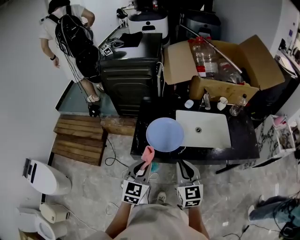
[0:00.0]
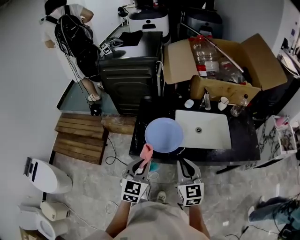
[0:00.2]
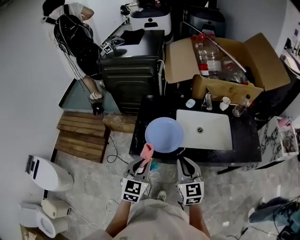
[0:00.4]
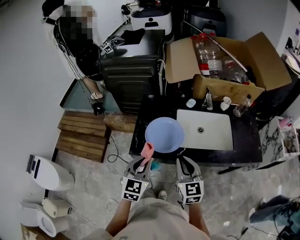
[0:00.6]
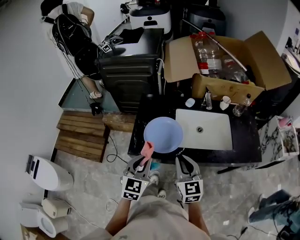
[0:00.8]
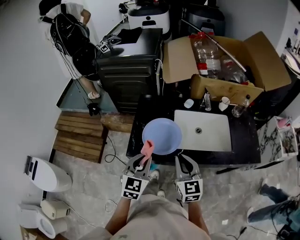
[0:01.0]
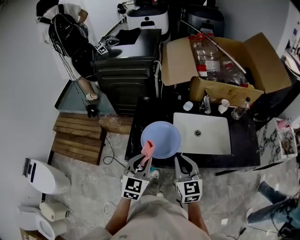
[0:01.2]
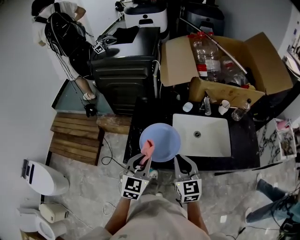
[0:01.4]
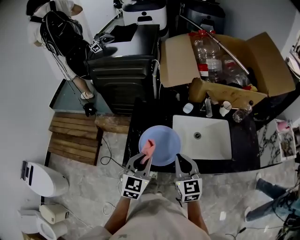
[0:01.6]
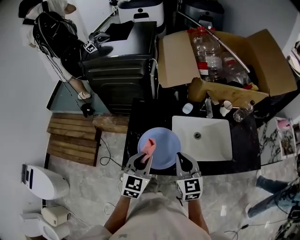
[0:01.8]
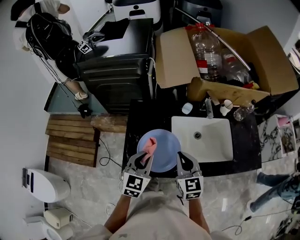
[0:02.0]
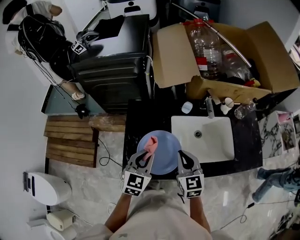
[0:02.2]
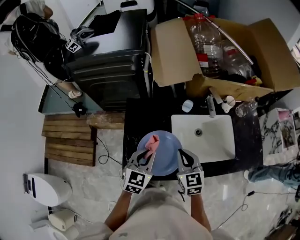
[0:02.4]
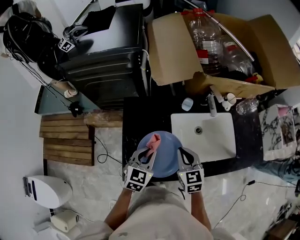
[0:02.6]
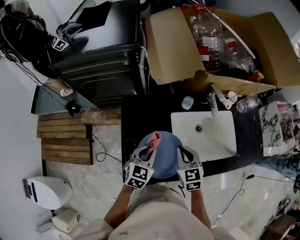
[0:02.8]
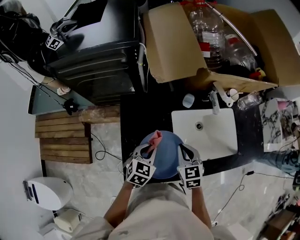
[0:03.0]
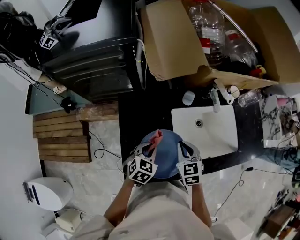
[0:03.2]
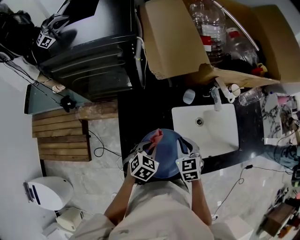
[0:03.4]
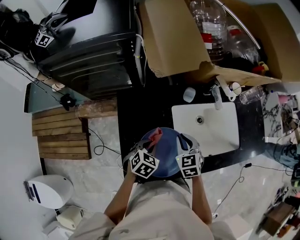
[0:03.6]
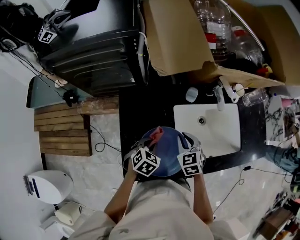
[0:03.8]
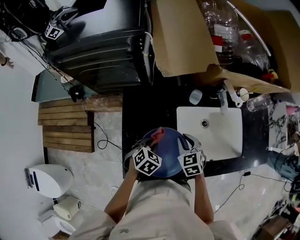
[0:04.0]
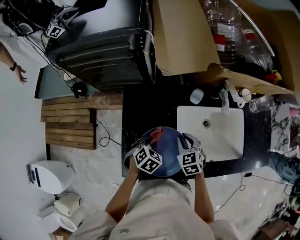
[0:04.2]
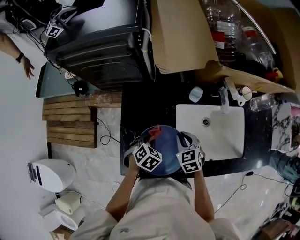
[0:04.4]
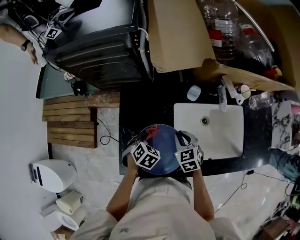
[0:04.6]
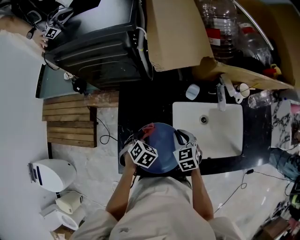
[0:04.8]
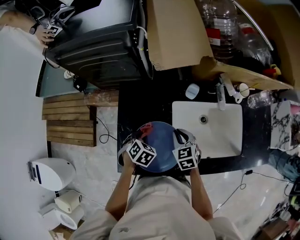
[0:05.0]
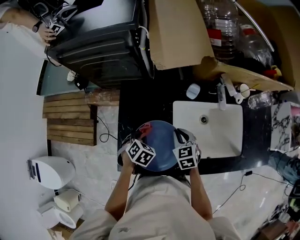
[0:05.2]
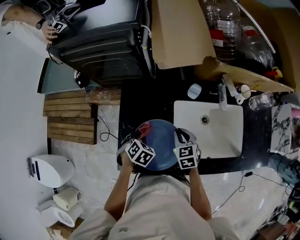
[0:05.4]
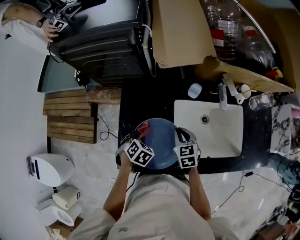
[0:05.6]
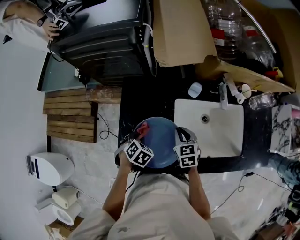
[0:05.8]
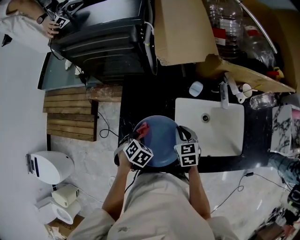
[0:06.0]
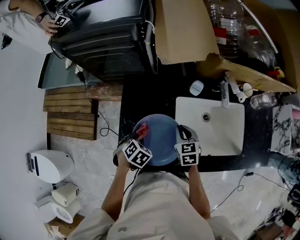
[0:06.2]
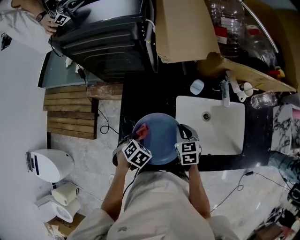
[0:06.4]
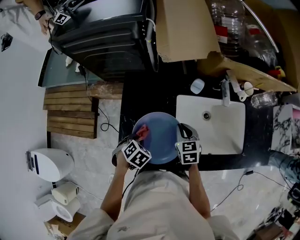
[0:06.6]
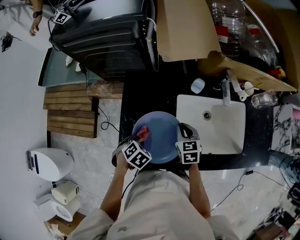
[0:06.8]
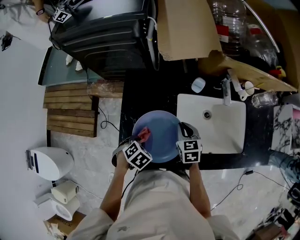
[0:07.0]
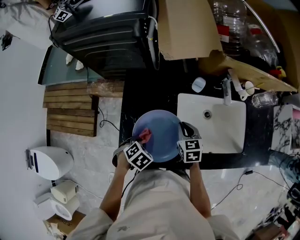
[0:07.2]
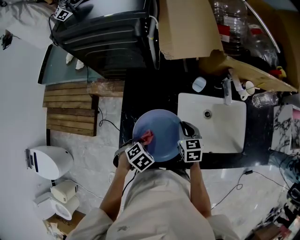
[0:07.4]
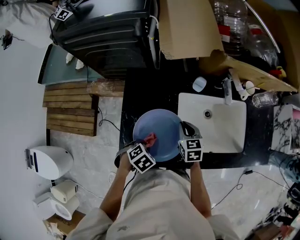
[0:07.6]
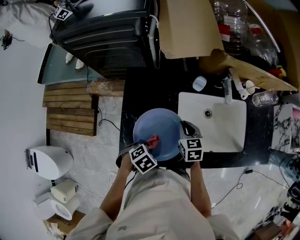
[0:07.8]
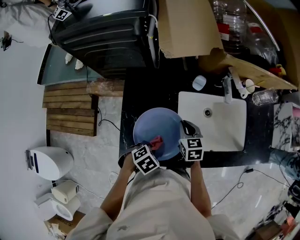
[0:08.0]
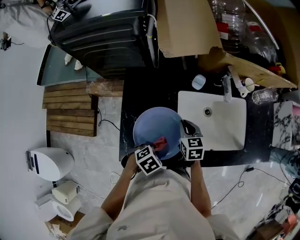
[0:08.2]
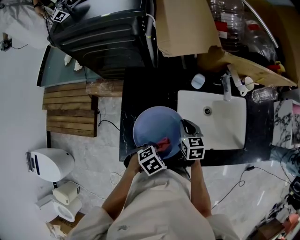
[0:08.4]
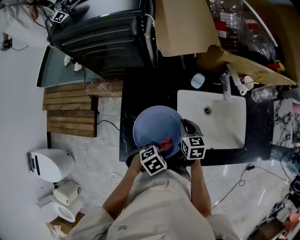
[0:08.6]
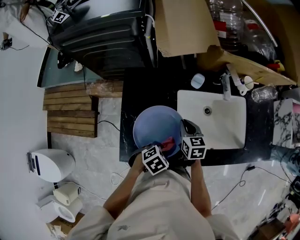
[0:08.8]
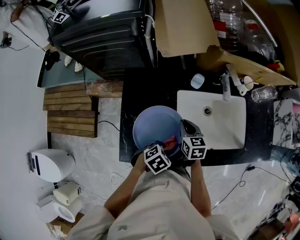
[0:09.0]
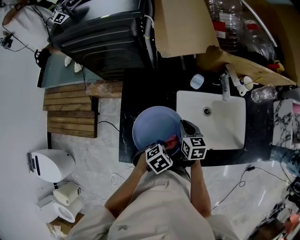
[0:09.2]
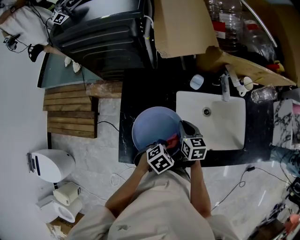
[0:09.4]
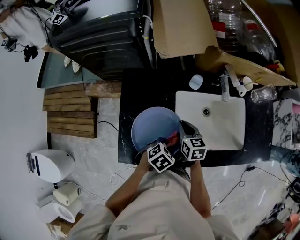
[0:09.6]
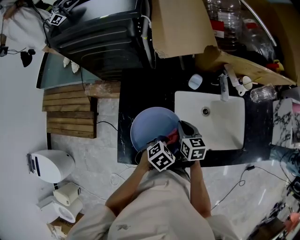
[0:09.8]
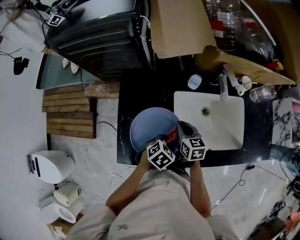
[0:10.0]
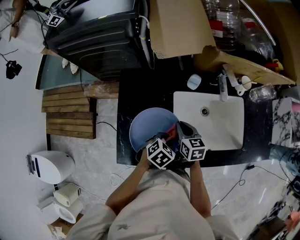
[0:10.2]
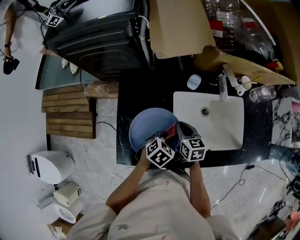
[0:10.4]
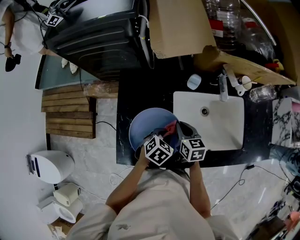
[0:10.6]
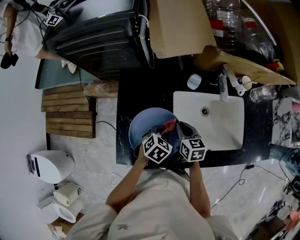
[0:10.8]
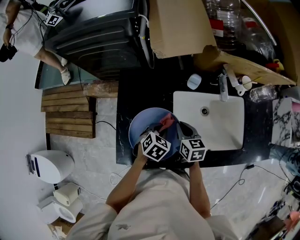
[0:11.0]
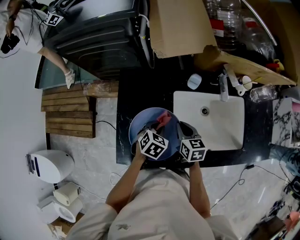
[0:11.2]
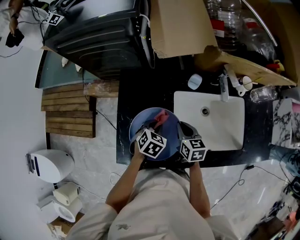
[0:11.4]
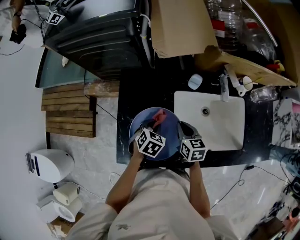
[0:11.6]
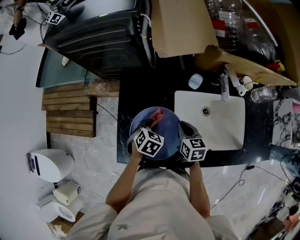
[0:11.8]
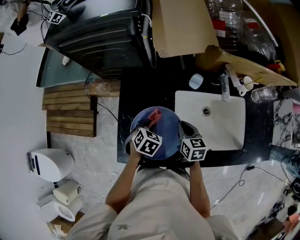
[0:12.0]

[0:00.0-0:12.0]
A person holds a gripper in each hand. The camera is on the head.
0:00.0 to 0:01.6: Both grippers move forward, some 15 cm.
0:01.6 to 0:03.0: The two grippers go roughly 20 cm forward and downward. The right gripper changes its angle by approximately 20 degrees. Meanwhile the left gripper changes its angle by approximately 30 degrees.
0:03.0 to 0:04.4: The grippers both shift downward by about 10 cm. The left gripper rotates about 30 degrees.
0:04.4 to 0:06.0: The left gripper moves to the left, approximately 5 cm.
0:06.0 to 0:07.6: The left gripper ends up approximately 10 cm from where it was.
0:07.6 to 0:09.0: The left gripper ends up about 10 cm from where it was.
0:09.0 to 0:10.4: The left gripper shifts approximately 10 cm forward.
0:10.4 to 0:12.0: The left gripper travels to the left and forward by approximately 10 cm.

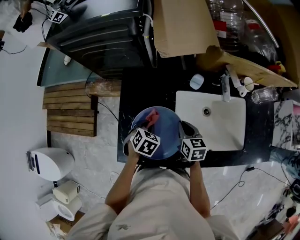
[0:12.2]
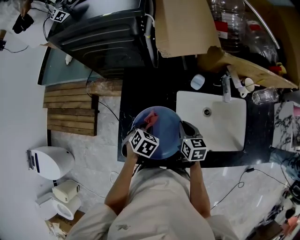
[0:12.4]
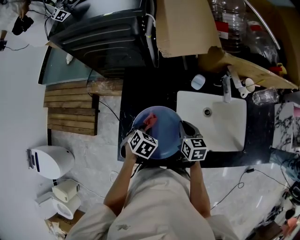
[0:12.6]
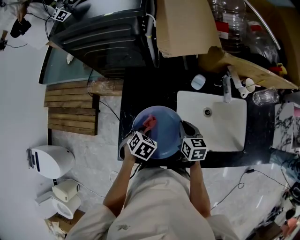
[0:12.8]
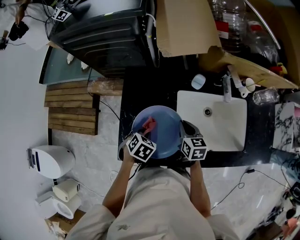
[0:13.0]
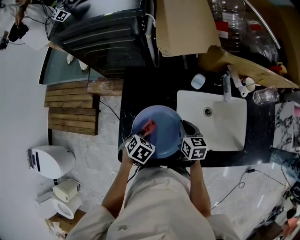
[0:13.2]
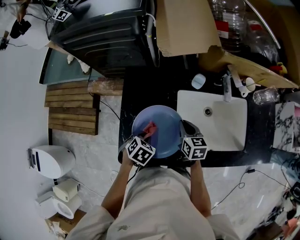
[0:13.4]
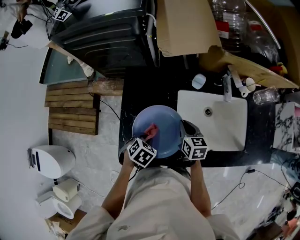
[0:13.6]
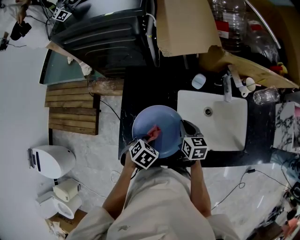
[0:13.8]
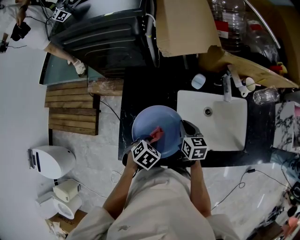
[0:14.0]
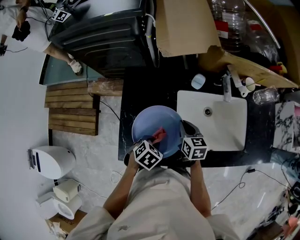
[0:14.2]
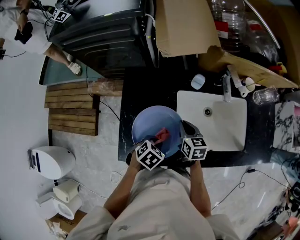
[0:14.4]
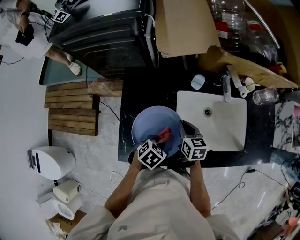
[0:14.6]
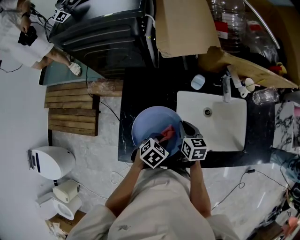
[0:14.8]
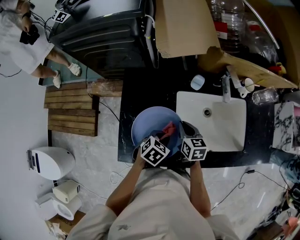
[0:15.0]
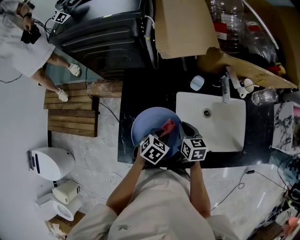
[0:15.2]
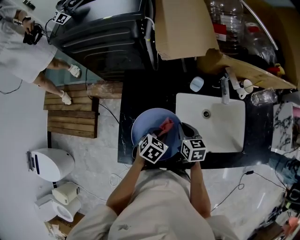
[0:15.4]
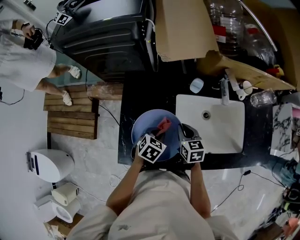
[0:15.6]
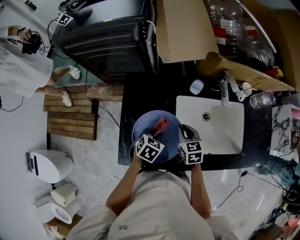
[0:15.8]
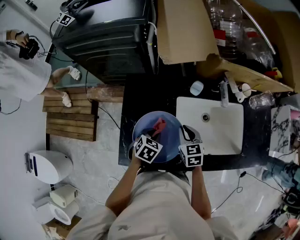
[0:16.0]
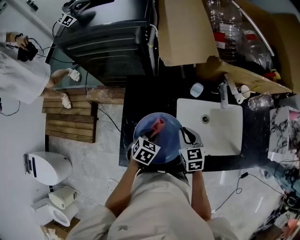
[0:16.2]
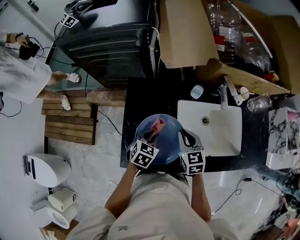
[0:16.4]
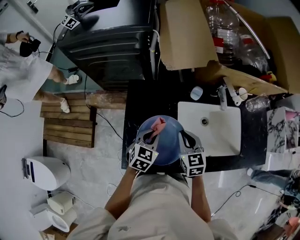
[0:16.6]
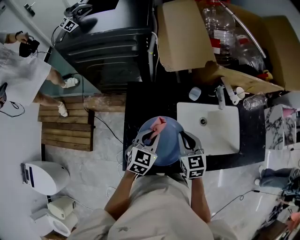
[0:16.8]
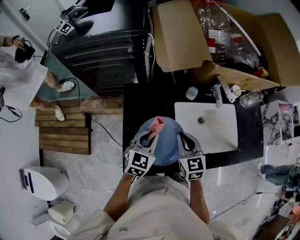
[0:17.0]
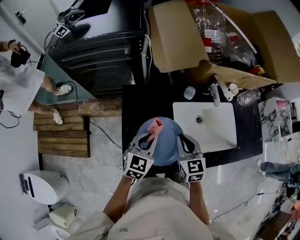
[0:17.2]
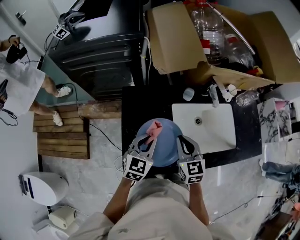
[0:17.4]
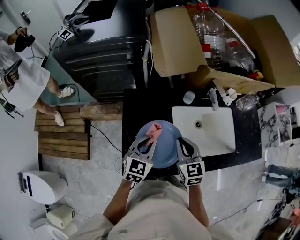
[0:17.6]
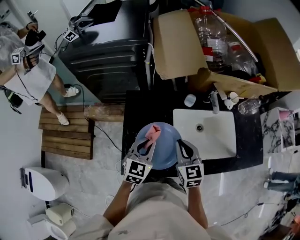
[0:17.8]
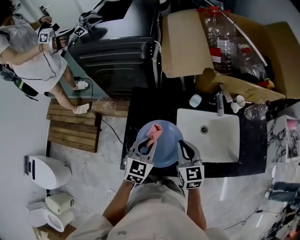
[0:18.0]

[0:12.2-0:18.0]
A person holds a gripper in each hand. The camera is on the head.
0:12.2 to 0:13.6: The left gripper is displaced backward by some 5 cm.
0:13.6 to 0:15.0: The left gripper moves to the right, approximately 10 cm.
0:15.0 to 0:16.6: The right gripper goes approximately 10 cm upward, and swivels roughly 20 degrees. Meanwhile the left gripper goes approximately 10 cm to the left and upward, and swivels roughly 20 degrees.
0:16.6 to 0:18.0: Both grippers travel together upward, roughly 5 cm.

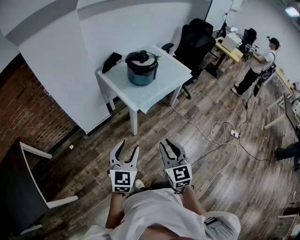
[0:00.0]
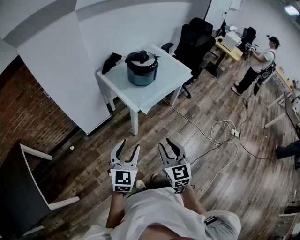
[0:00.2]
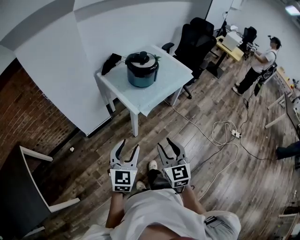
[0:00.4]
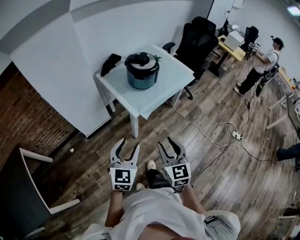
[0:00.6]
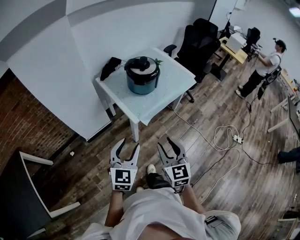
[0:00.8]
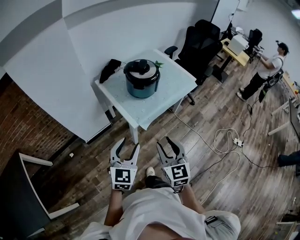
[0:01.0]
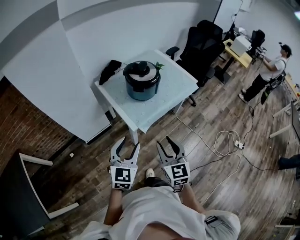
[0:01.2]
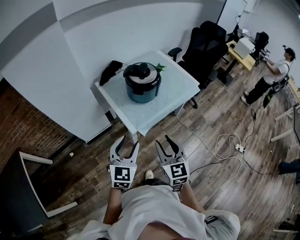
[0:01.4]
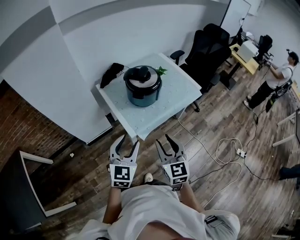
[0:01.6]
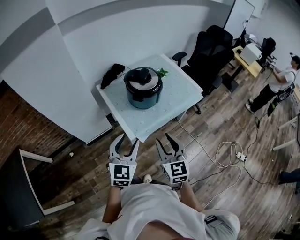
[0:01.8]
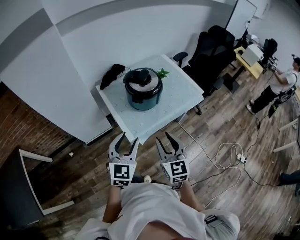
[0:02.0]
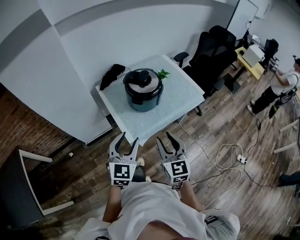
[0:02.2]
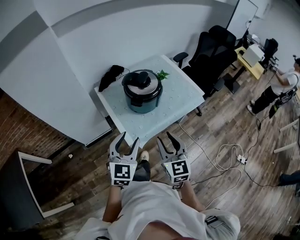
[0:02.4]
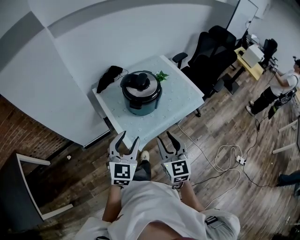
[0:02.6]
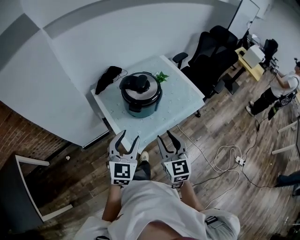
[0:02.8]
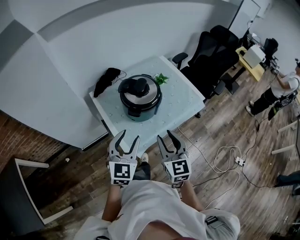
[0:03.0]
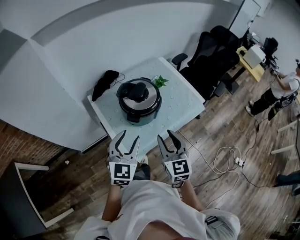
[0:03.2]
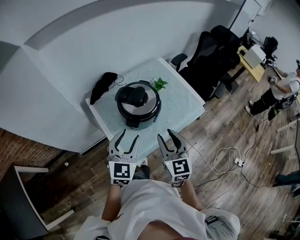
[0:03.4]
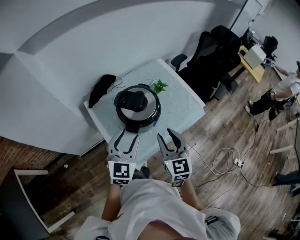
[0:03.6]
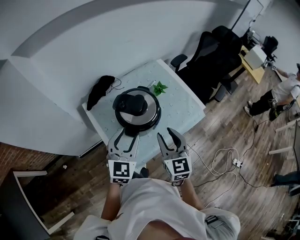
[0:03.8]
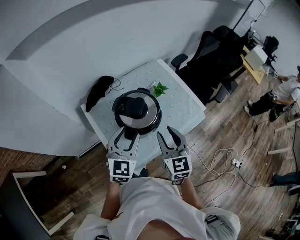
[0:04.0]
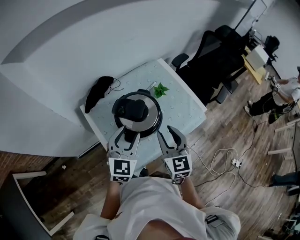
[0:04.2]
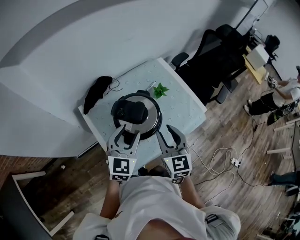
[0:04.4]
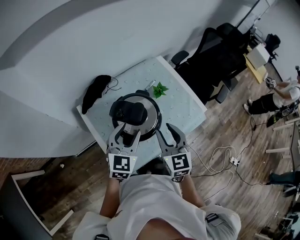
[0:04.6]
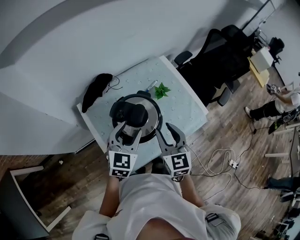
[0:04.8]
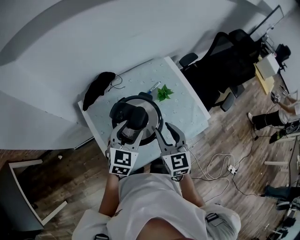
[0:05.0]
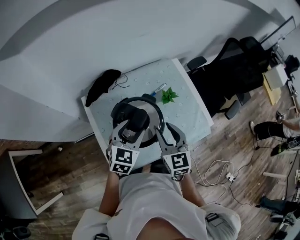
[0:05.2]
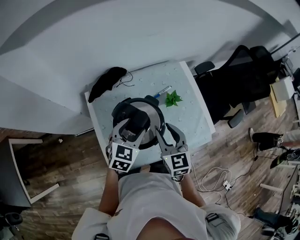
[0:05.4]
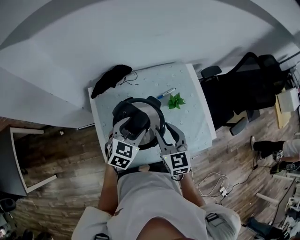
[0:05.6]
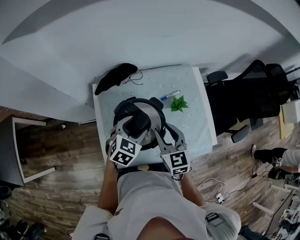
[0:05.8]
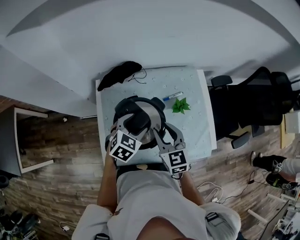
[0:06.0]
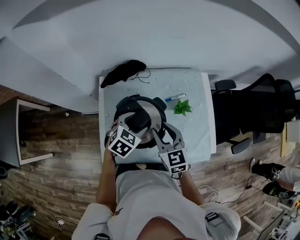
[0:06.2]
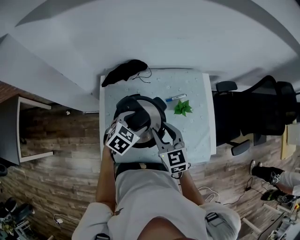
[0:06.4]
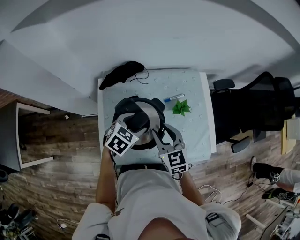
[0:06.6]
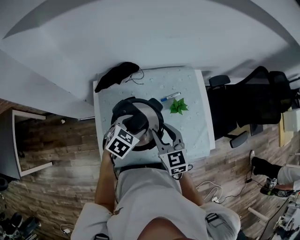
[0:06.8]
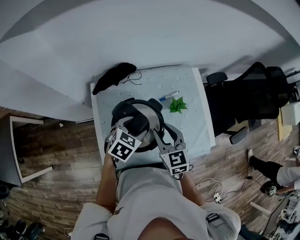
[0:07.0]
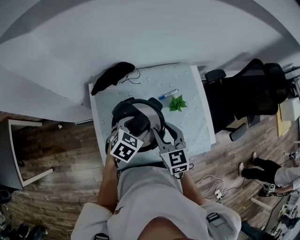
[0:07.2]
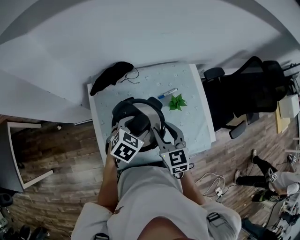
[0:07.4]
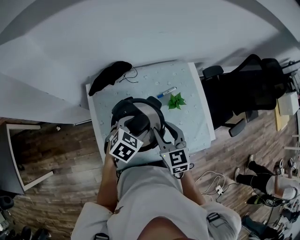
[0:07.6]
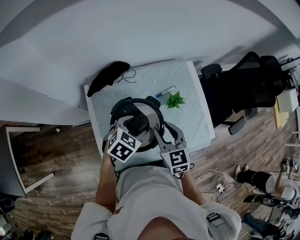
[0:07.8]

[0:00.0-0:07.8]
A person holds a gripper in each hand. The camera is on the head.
0:00.0 to 0:01.6: Both grippers travel together forward, about 25 cm. The right gripper opens its fingers.
0:01.6 to 0:03.2: The two grippers go about 20 cm forward.
0:03.2 to 0:04.6: The two grippers go some 20 cm forward.
0:04.6 to 0:06.2: The left gripper travels downward and forward by about 15 cm, and changes its angle by some 30 degrees, while the right gripper shifts about 10 cm forward and downward, and turns by approximately 40 degrees.
0:06.2 to 0:07.8: The grippers move only a little.
